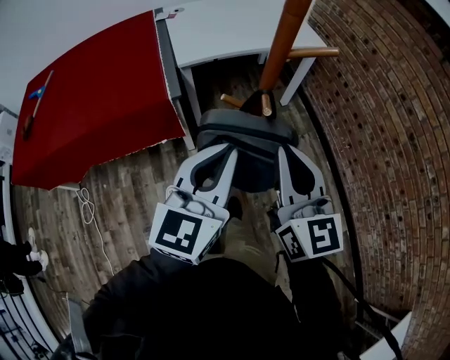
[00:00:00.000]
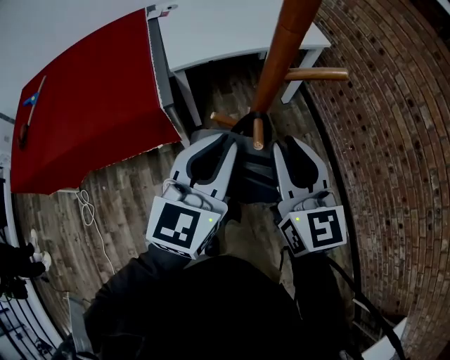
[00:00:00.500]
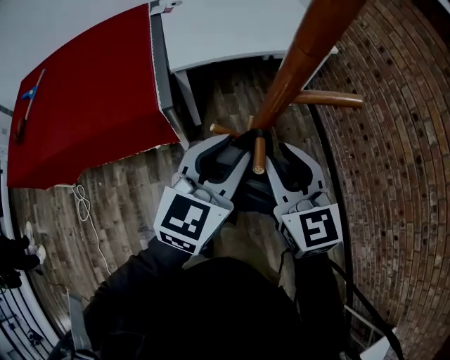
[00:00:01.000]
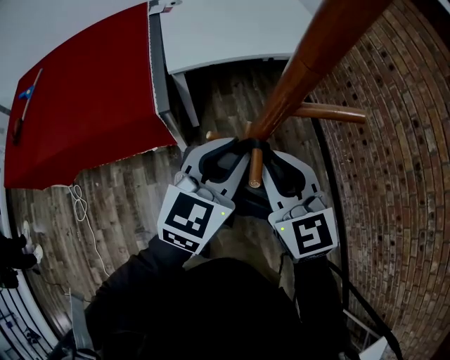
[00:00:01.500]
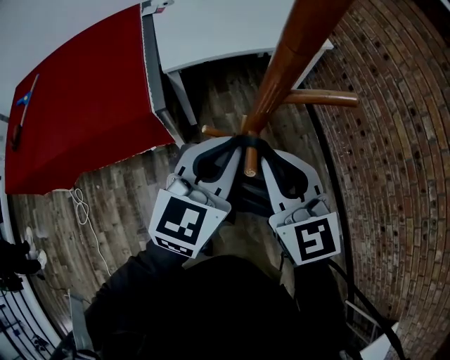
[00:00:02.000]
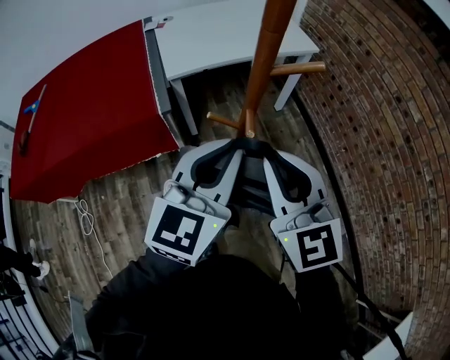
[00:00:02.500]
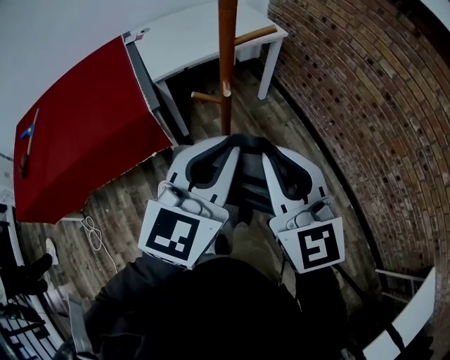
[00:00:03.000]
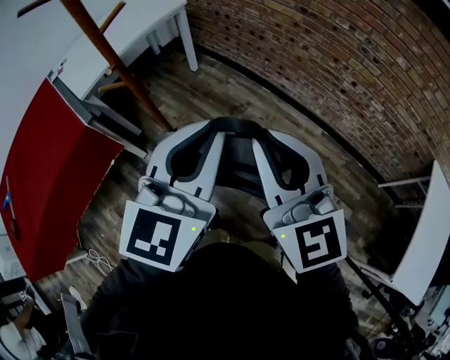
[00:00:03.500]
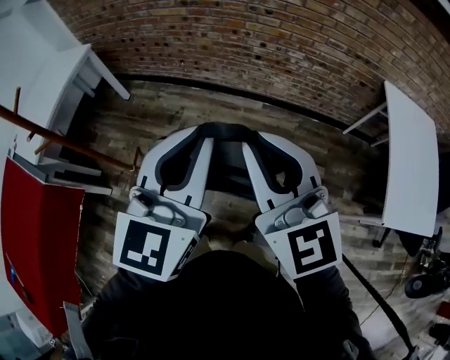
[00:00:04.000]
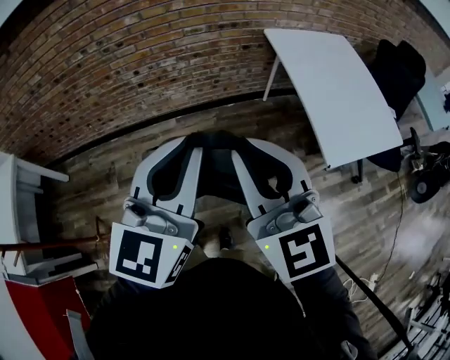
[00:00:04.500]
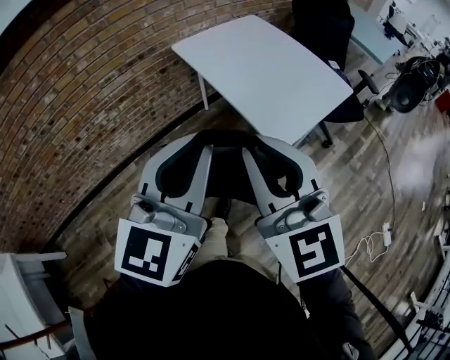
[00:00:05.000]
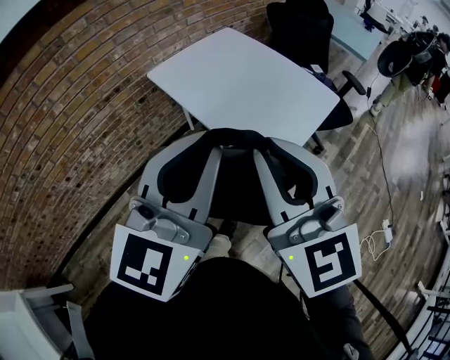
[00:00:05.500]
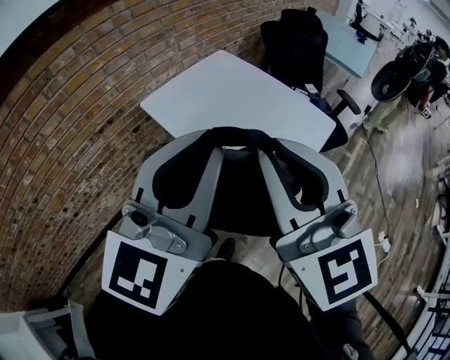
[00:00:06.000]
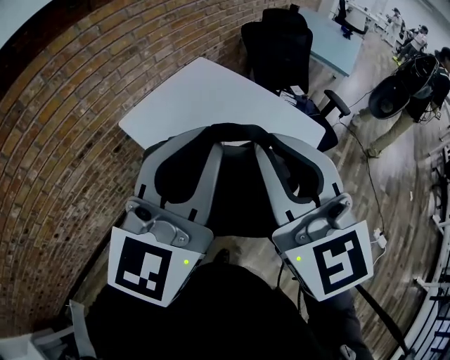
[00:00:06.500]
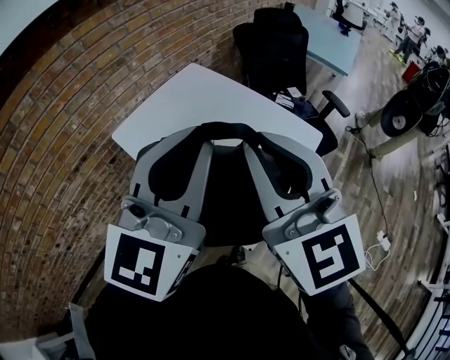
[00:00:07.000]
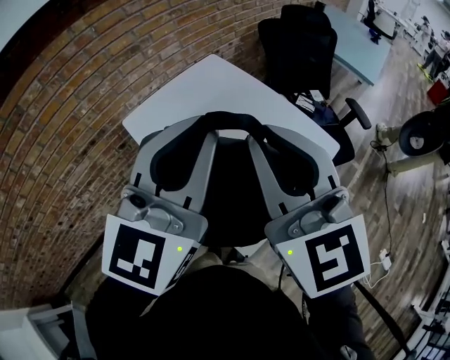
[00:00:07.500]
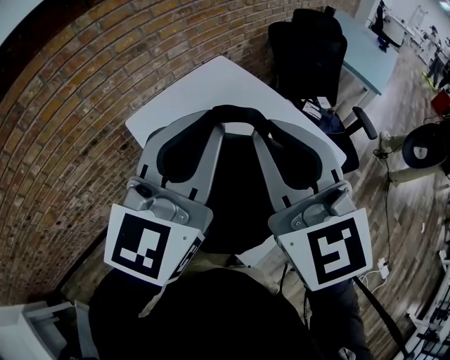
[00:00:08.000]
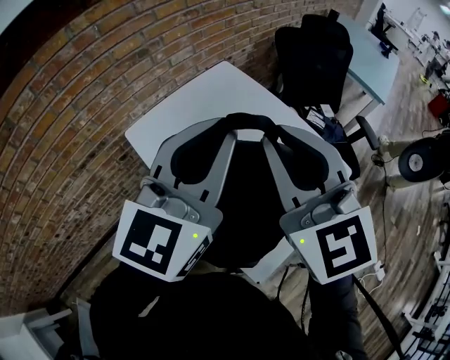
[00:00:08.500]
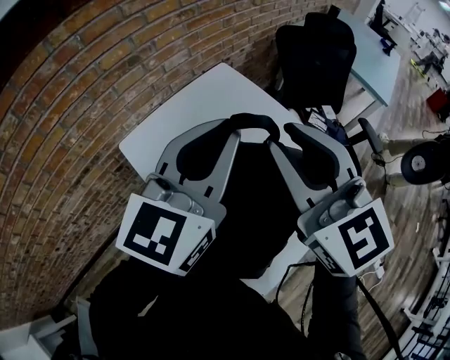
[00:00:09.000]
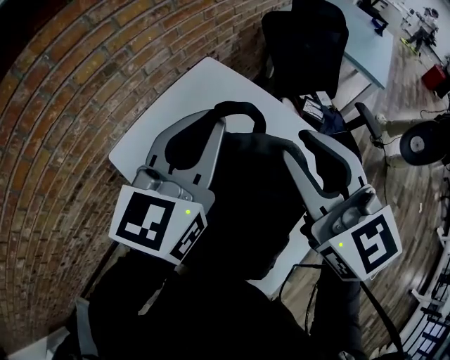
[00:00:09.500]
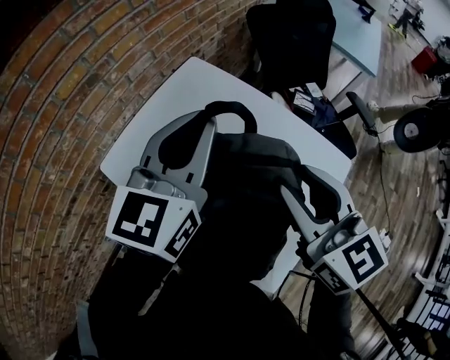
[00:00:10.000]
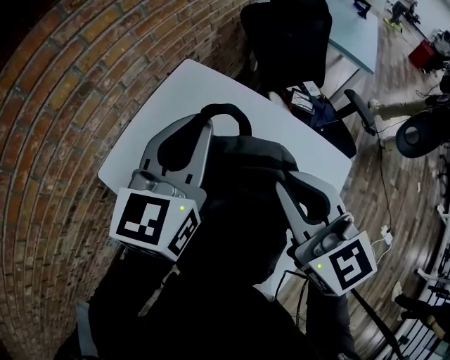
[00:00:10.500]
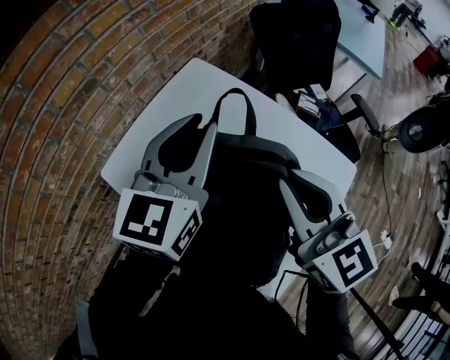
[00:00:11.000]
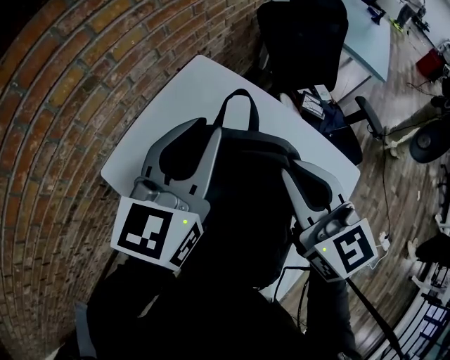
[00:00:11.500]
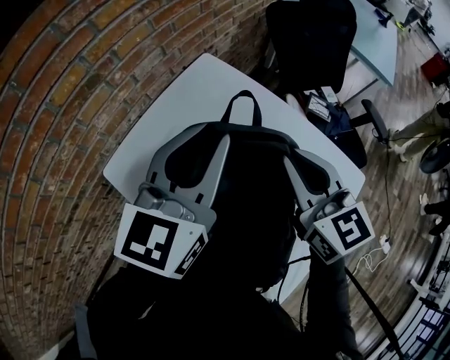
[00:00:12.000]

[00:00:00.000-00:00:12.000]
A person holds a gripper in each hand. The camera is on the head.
00:00:00.000 to 00:00:02.000: Both grippers move forward, some 10 cm. The left gripper opens and closes again, while the right gripper rotates approximately 20 degrees.
00:00:02.000 to 00:00:04.000: The pair of grippers is taken some 60 cm. The left gripper swivels some 50 degrees, while the right gripper rotates approximately 60 degrees.
00:00:04.000 to 00:00:06.000: The pair of grippers is taken approximately 70 cm. The left gripper turns by roughly 70 degrees; the right gripper changes its angle by some 60 degrees.
00:00:06.000 to 00:00:08.000: The two grippers go about 25 cm forward.
00:00:08.000 to 00:00:10.000: The left gripper moves forward, some 25 cm, while the right gripper goes about 20 cm forward and downward, changes its angle by approximately 20 degrees, and opens its fingers.
00:00:10.000 to 00:00:12.000: The right gripper is displaced forward and downward by roughly 15 cm, and closes its fingers. The left gripper changes place by approximately 5 cm.

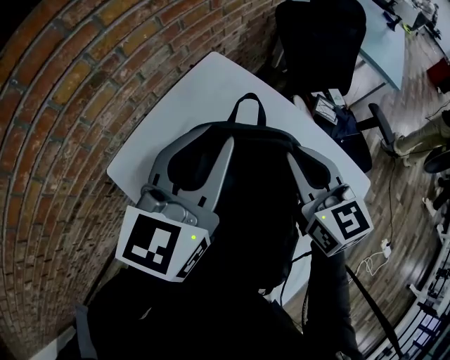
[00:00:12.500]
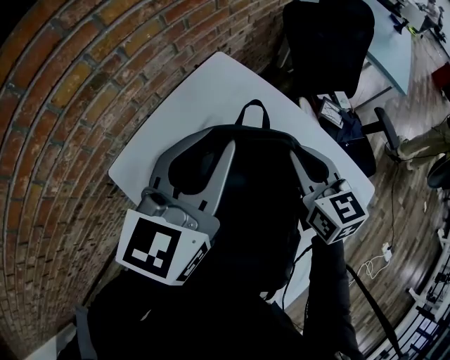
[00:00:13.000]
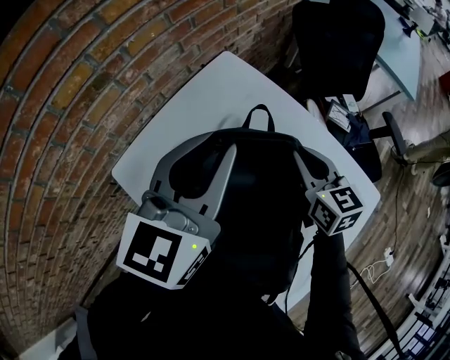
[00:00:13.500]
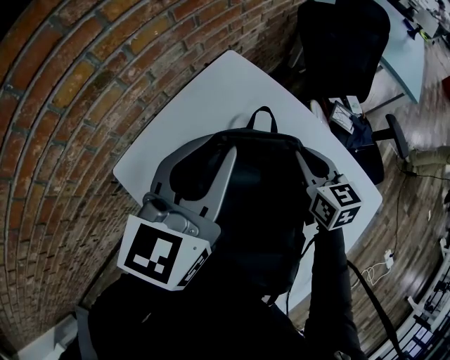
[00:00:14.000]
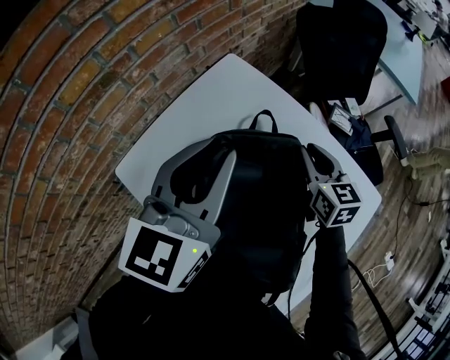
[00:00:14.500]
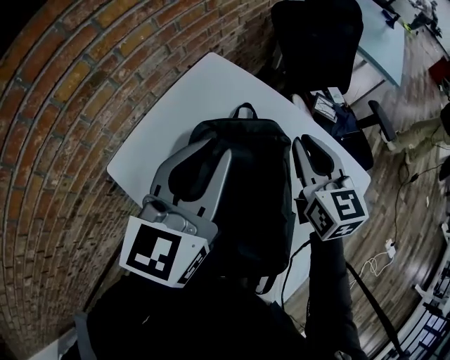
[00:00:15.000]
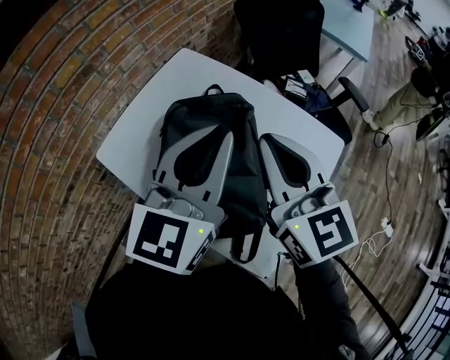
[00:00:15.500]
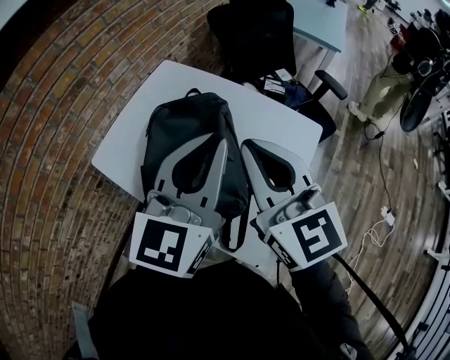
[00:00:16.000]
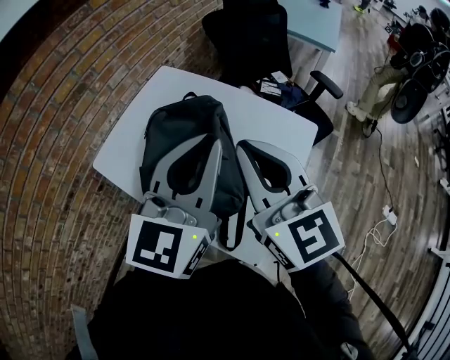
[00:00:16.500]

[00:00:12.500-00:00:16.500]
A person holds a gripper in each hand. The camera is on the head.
00:00:12.500 to 00:00:14.500: The right gripper travels downward and forward by approximately 15 cm.
00:00:14.500 to 00:00:16.500: The left gripper heads backward and to the right, covering roughly 30 cm, while the right gripper heads backward and upward, covering roughly 40 cm, and turns by about 30 degrees.

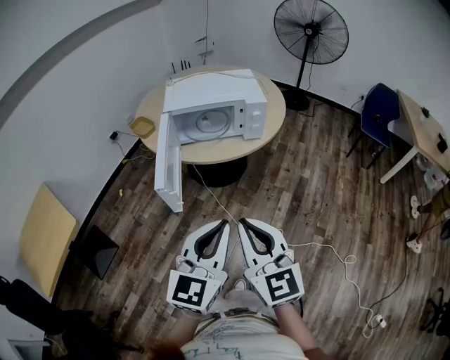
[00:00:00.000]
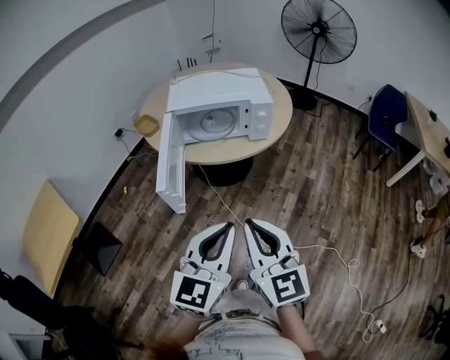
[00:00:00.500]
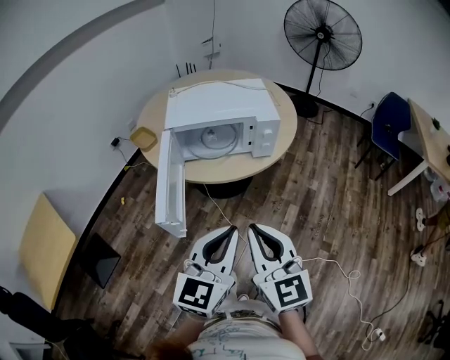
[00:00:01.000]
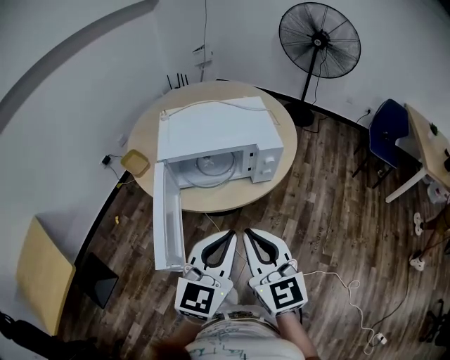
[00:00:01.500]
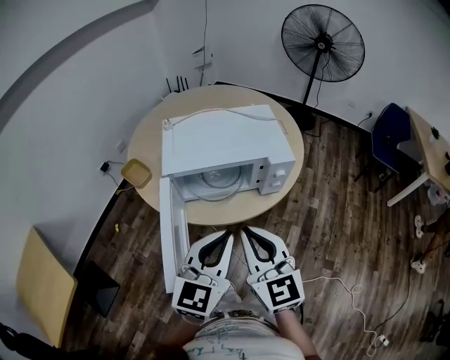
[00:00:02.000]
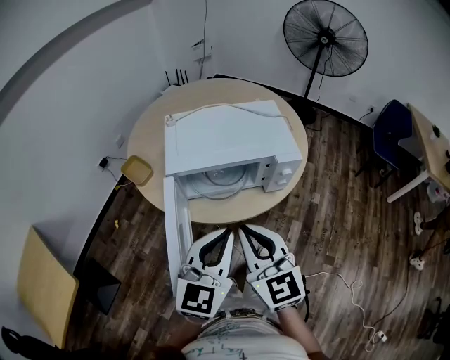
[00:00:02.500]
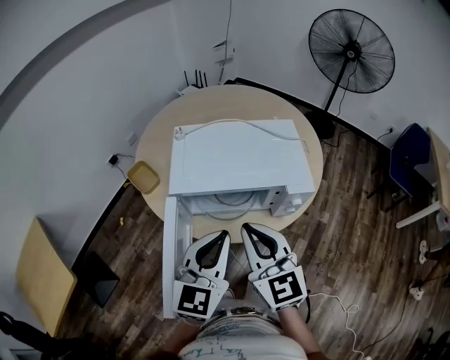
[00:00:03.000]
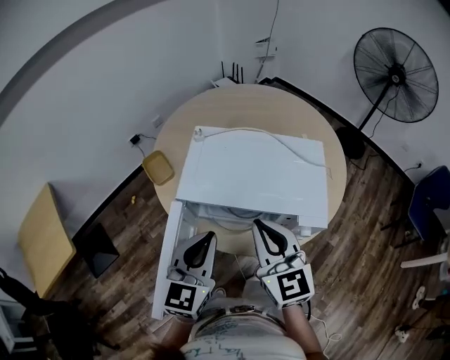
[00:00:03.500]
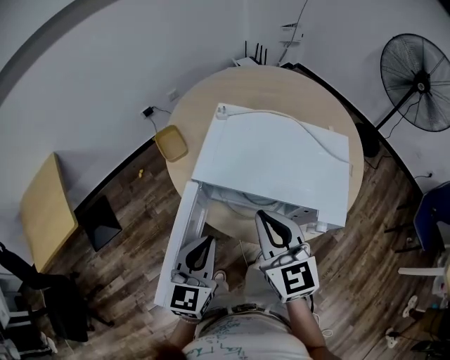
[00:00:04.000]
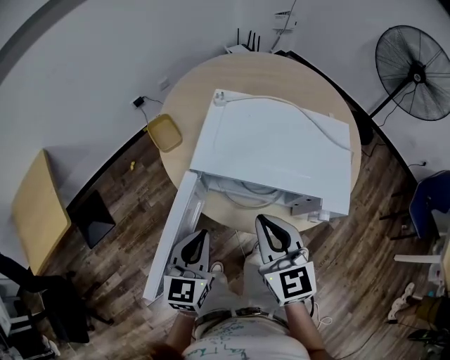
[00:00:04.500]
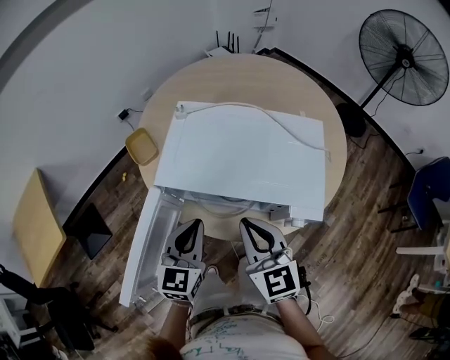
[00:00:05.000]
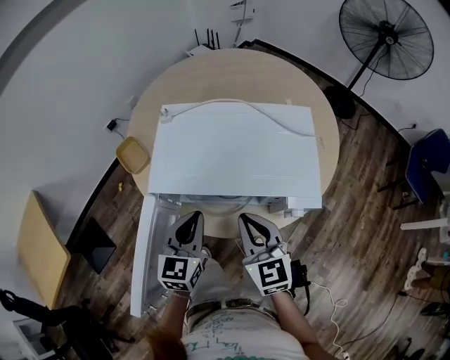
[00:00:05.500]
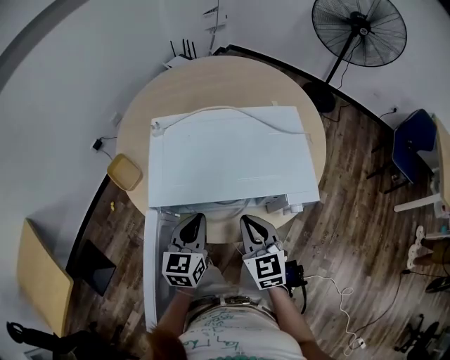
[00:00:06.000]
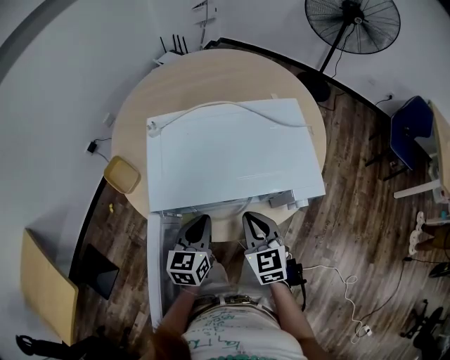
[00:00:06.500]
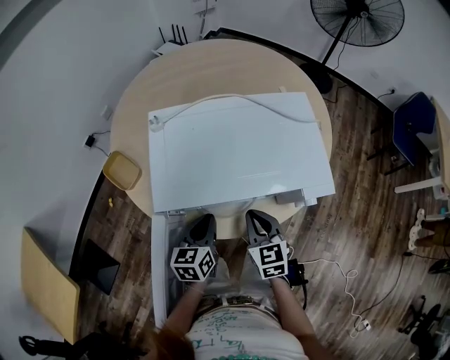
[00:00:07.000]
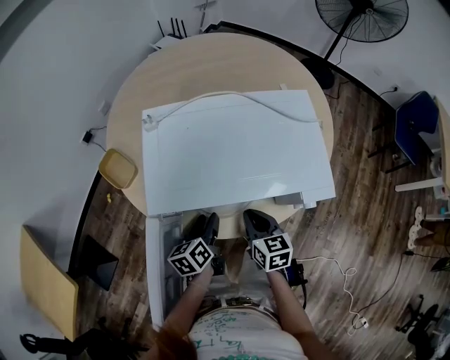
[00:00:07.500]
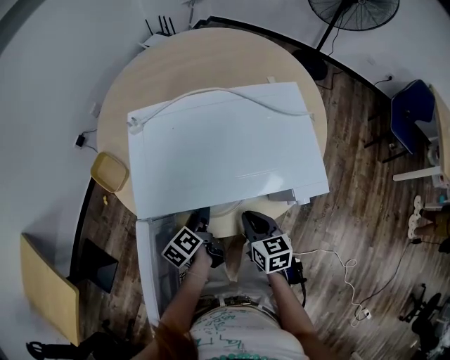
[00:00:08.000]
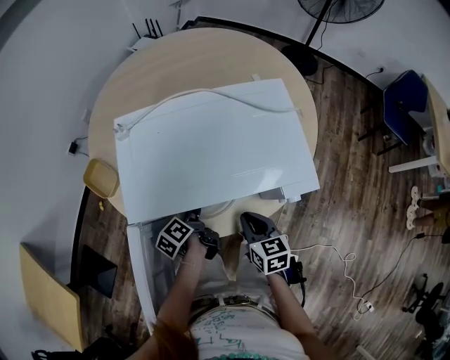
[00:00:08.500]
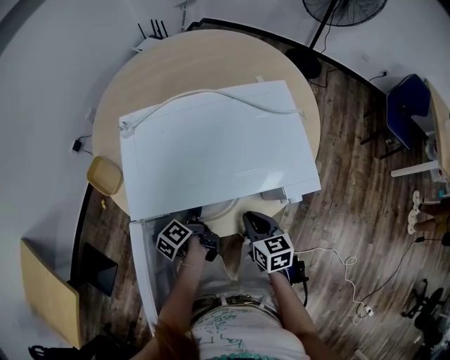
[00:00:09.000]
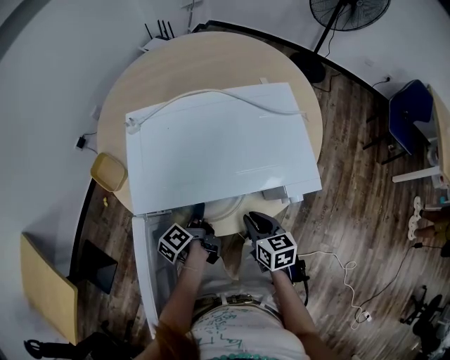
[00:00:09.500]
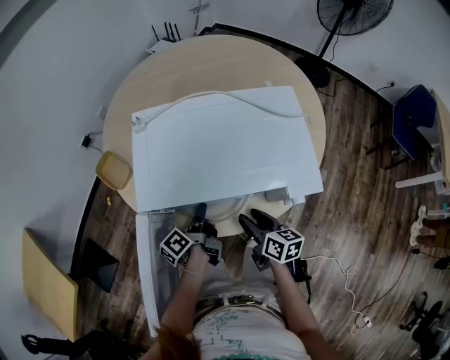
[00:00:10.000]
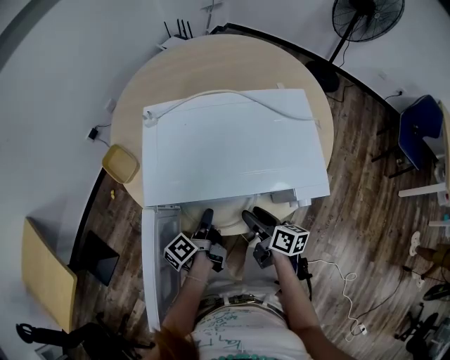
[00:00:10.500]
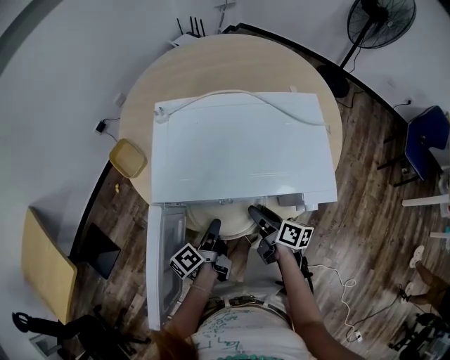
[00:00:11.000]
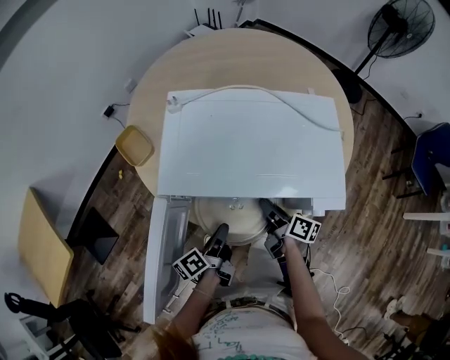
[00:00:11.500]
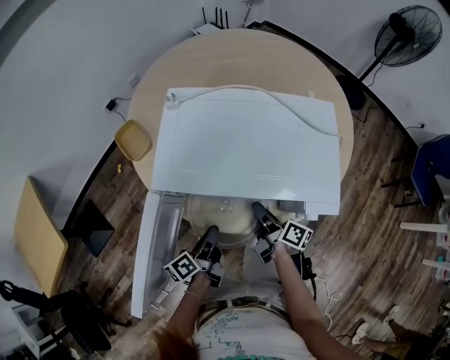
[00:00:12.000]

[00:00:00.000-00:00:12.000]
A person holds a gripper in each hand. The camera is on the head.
00:00:00.000 to 00:00:02.000: The two grippers go about 30 cm forward.
00:00:02.000 to 00:00:04.000: The left gripper changes place by roughly 15 cm, and changes its angle by approximately 40 degrees, while the right gripper moves roughly 20 cm, and rotates roughly 20 degrees.
00:00:04.000 to 00:00:06.000: The left gripper moves forward, downward and to the right, about 15 cm; the right gripper is displaced downward by some 15 cm, and turns by approximately 20 degrees.
00:00:06.000 to 00:00:08.000: Both grippers move downward, some 15 cm. The right gripper changes its angle by some 30 degrees. Meanwhile the left gripper rolls counterclockwise, seen from behind, by roughly 60 degrees, and opens up.
00:00:08.000 to 00:00:10.000: The right gripper rotates some 20 degrees, and opens; the left gripper swivels some 20 degrees, and closes.
00:00:10.000 to 00:00:12.000: The right gripper changes its angle by roughly 30 degrees, and closes. The left gripper is displaced backward by approximately 10 cm.
